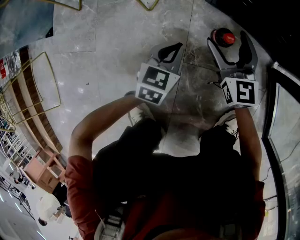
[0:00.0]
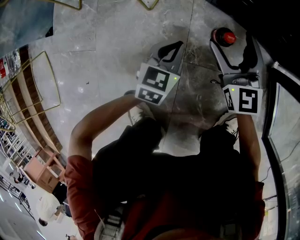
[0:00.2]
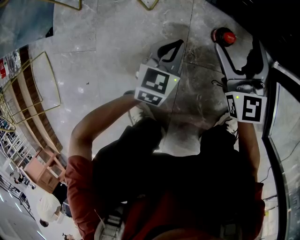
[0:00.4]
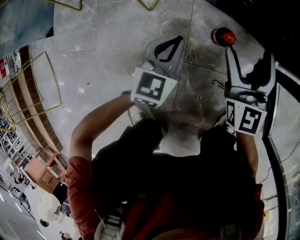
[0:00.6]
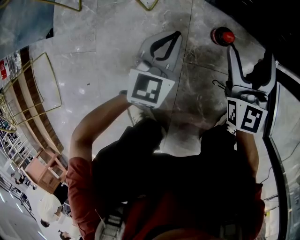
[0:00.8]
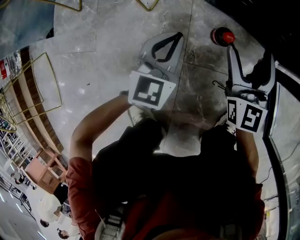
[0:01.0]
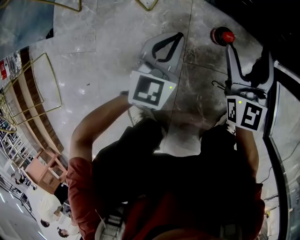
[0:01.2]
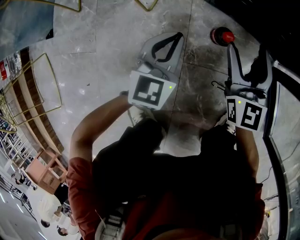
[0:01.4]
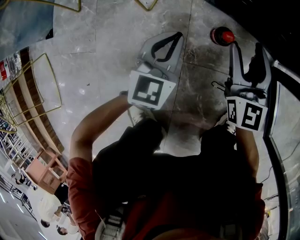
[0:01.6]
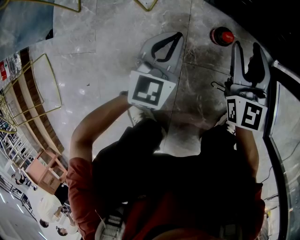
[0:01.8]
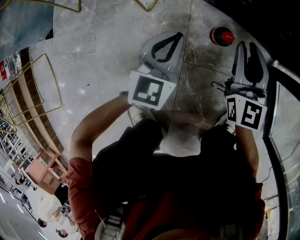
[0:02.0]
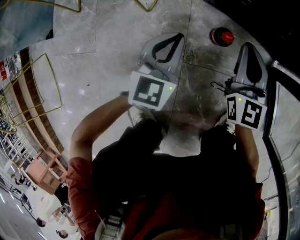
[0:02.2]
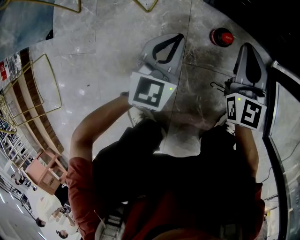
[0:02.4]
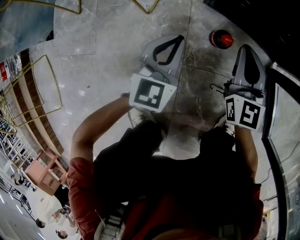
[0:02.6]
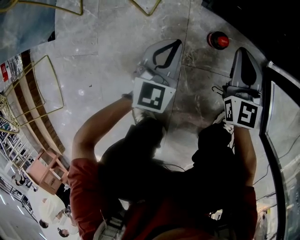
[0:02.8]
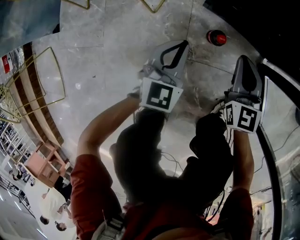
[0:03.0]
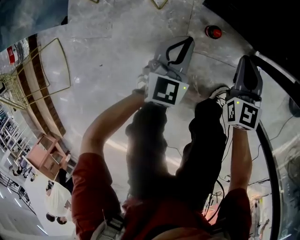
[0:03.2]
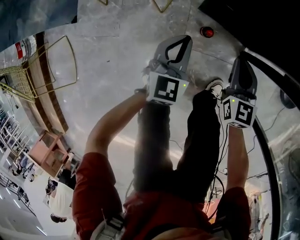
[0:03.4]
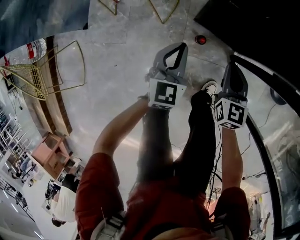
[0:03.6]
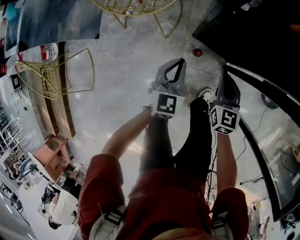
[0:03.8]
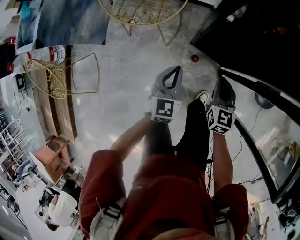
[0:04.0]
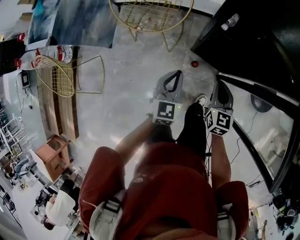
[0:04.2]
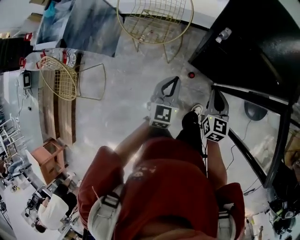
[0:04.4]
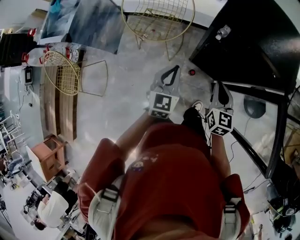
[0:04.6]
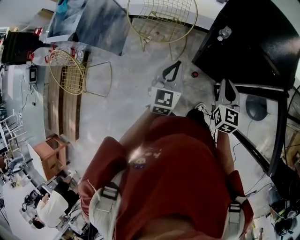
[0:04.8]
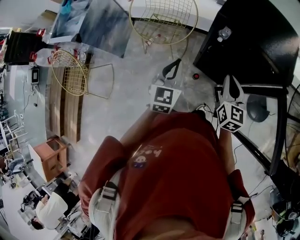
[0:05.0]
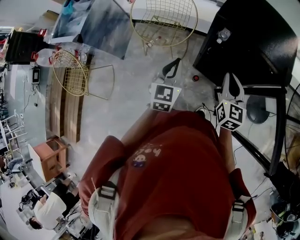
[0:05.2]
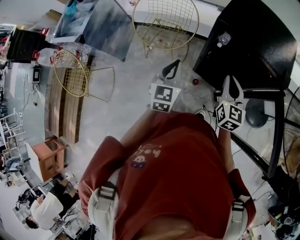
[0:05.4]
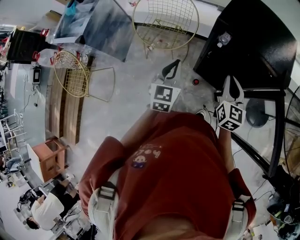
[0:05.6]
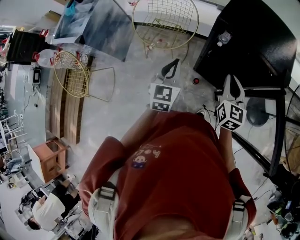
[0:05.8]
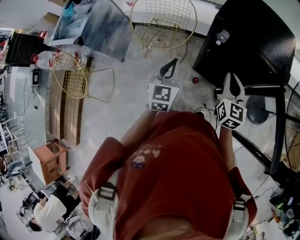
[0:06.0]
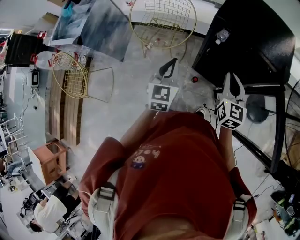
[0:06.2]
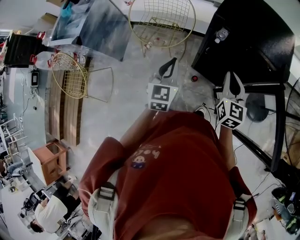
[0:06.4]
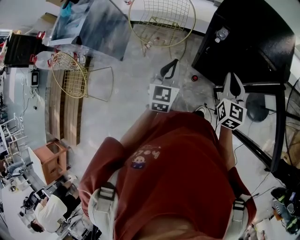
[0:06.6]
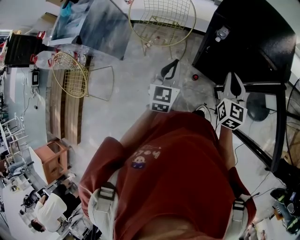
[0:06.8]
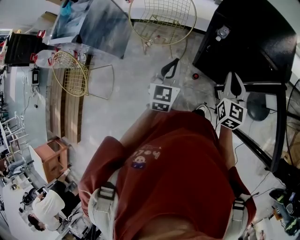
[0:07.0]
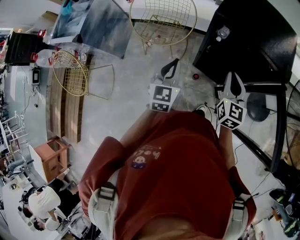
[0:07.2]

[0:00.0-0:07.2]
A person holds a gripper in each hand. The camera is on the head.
0:00.0 to 0:01.4: Both grippers travel together upward, about 5 cm. The left gripper turns by roughly 20 degrees.
0:01.4 to 0:02.8: The right gripper closes.
0:02.8 to 0:04.4: Both grippers travel together upward, some 70 cm.
0:04.4 to 0:05.8: The grippers both shift upward by about 15 cm.
0:05.8 to 0:07.2: The grippers stay close to where they were, moving slightly.

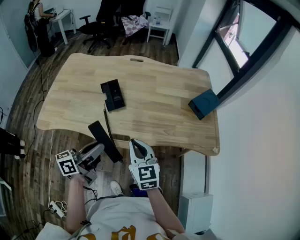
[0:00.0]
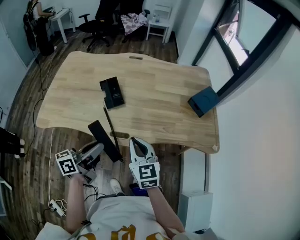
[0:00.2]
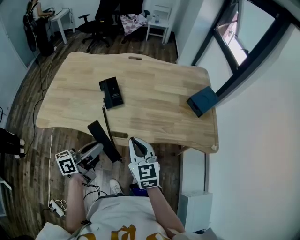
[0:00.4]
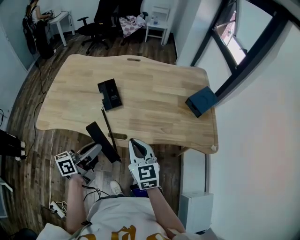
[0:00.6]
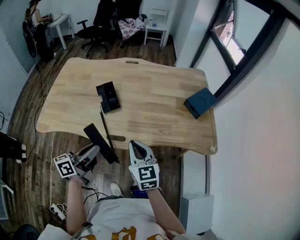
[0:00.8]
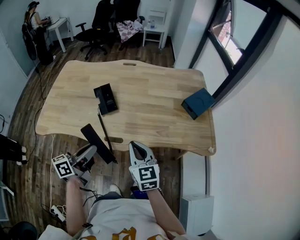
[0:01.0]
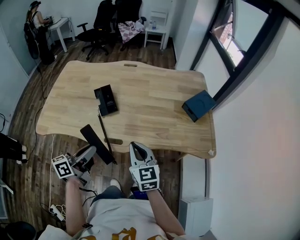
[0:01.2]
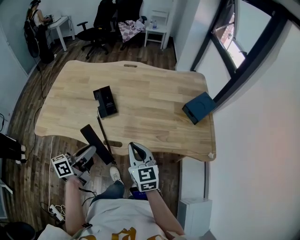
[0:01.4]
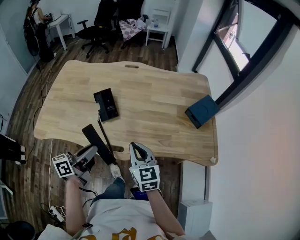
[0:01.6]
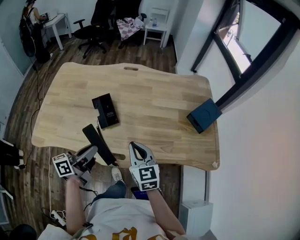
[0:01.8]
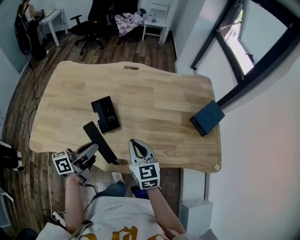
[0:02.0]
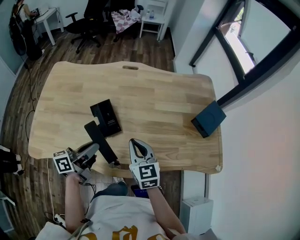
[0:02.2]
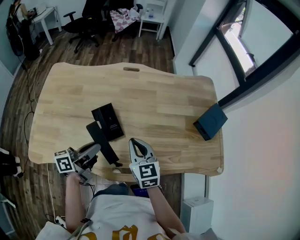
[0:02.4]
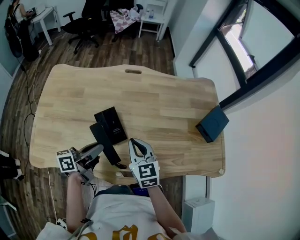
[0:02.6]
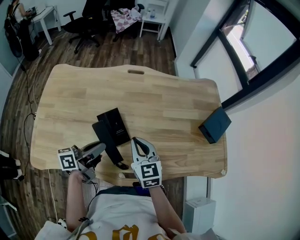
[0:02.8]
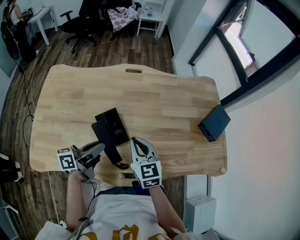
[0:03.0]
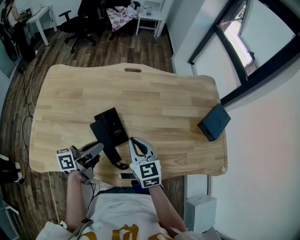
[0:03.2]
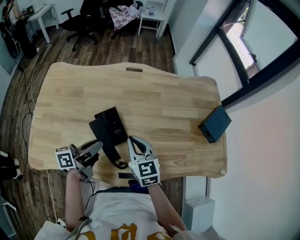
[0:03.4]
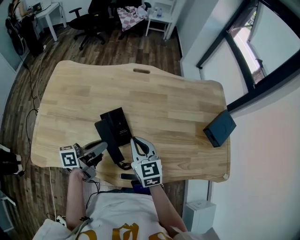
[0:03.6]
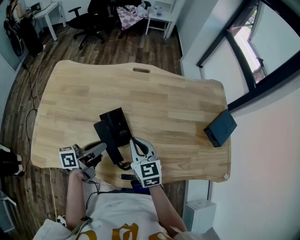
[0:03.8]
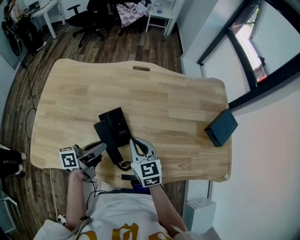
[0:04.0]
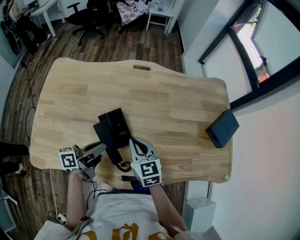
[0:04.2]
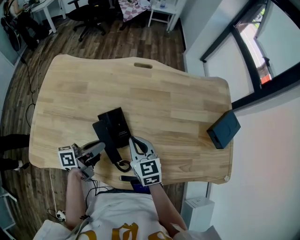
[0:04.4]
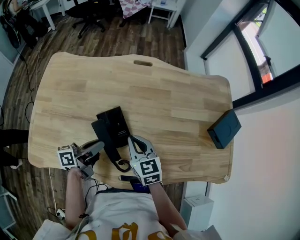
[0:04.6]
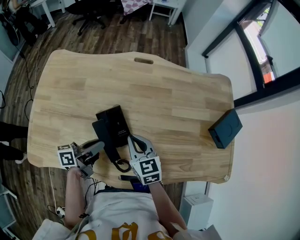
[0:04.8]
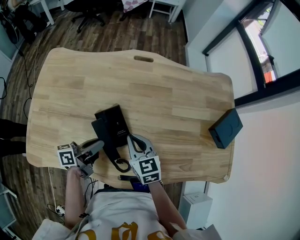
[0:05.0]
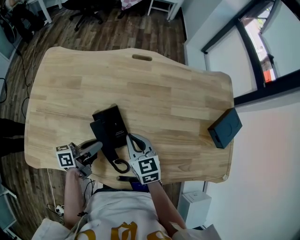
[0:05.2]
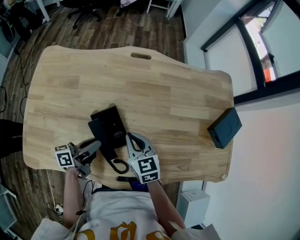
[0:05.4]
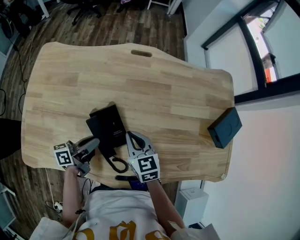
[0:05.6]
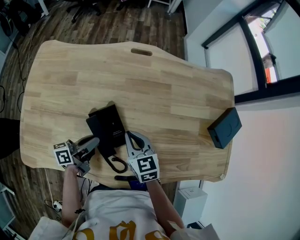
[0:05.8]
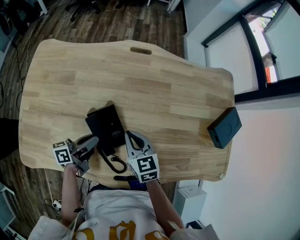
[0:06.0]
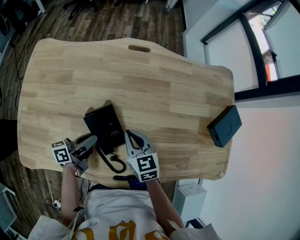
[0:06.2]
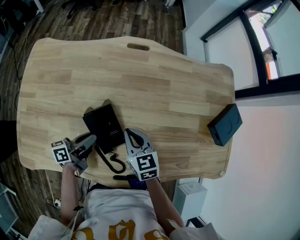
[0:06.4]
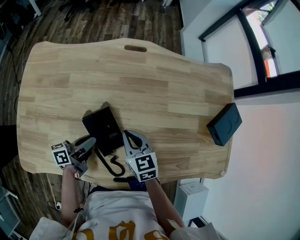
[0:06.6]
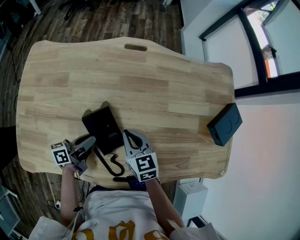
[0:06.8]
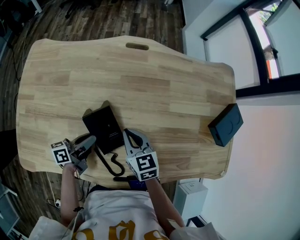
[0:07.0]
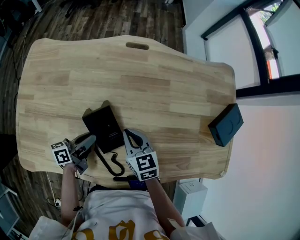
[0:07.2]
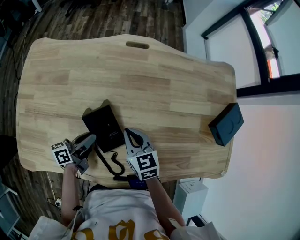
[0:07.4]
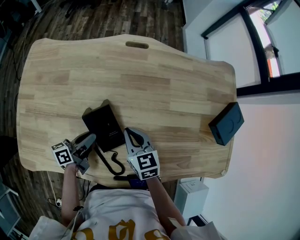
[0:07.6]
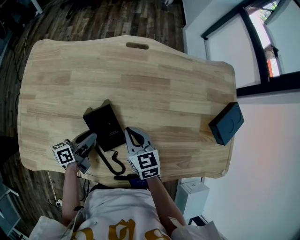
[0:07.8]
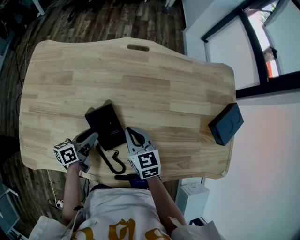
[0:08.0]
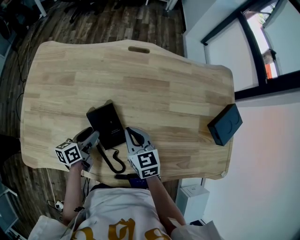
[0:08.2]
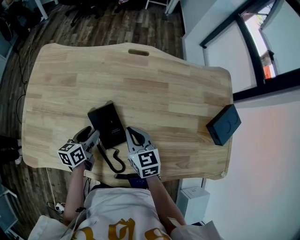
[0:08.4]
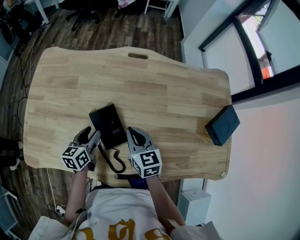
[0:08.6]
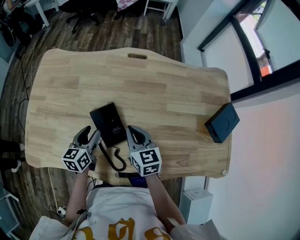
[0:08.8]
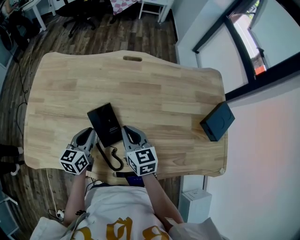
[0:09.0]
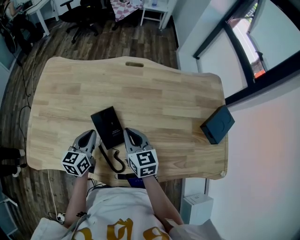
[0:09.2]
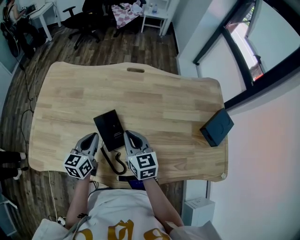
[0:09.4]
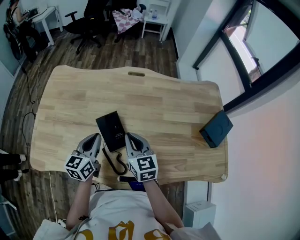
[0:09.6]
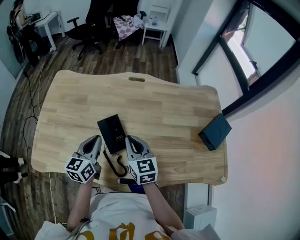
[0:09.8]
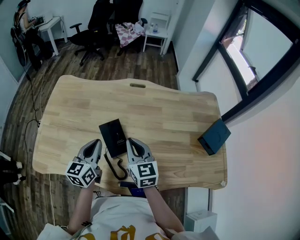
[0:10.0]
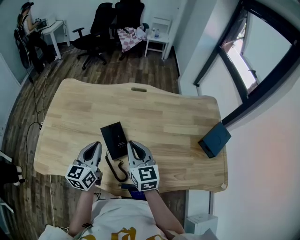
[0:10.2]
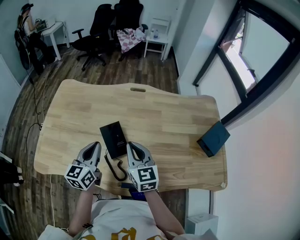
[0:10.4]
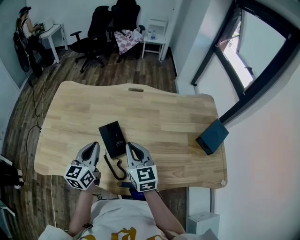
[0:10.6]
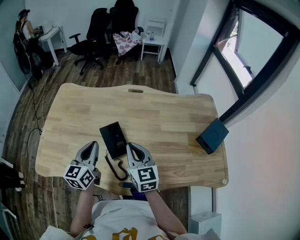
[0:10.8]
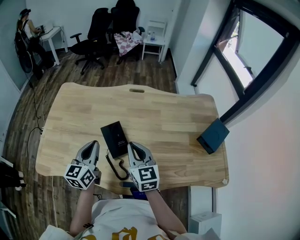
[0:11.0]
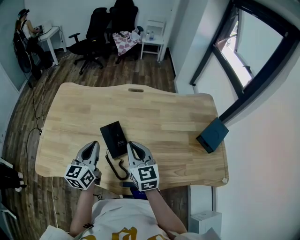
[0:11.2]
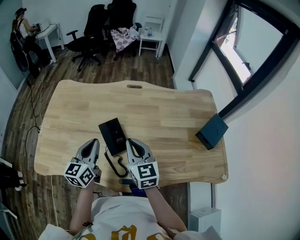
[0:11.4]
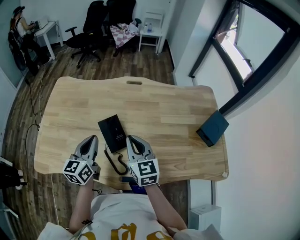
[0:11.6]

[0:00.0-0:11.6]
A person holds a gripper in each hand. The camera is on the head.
0:00.0 to 0:01.4: The right gripper changes place by about 5 cm.
0:01.4 to 0:02.8: Both grippers move forward and to the left, some 25 cm.
0:02.8 to 0:04.4: Both grippers move downward, some 5 cm.
0:04.4 to 0:05.8: The left gripper moves downward, roughly 5 cm. The right gripper shifts by roughly 5 cm.
0:05.8 to 0:07.2: The grippers stay close to where they were, moving slightly.
0:07.2 to 0:08.8: The right gripper moves upward, some 5 cm. Meanwhile the left gripper swivels about 40 degrees, and opens.
0:08.8 to 0:10.2: The left gripper heads upward, covering about 15 cm, and closes up. Meanwhile the right gripper goes roughly 15 cm upward and backward.
0:10.2 to 0:11.6: There are only small adjustments of the grippers.

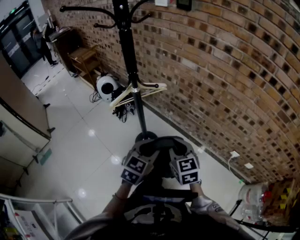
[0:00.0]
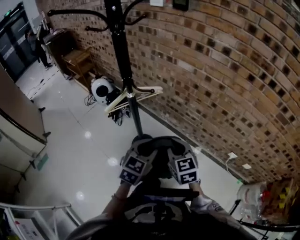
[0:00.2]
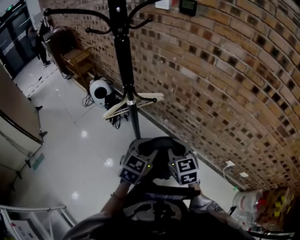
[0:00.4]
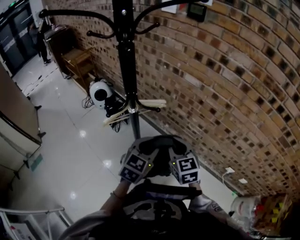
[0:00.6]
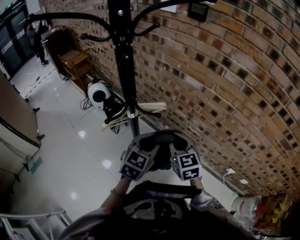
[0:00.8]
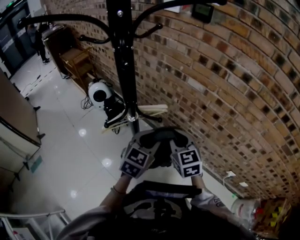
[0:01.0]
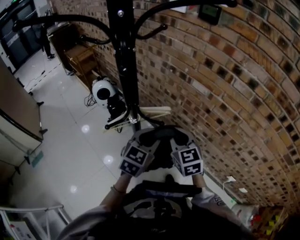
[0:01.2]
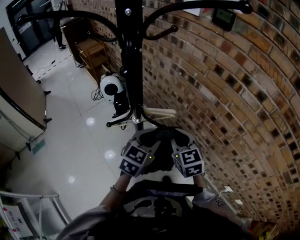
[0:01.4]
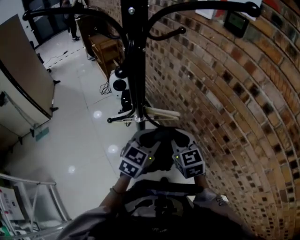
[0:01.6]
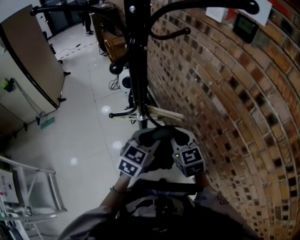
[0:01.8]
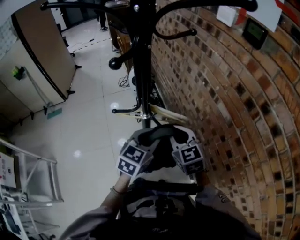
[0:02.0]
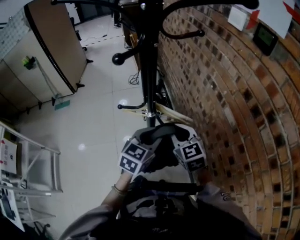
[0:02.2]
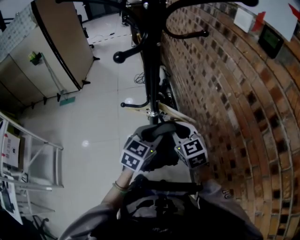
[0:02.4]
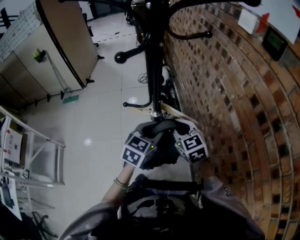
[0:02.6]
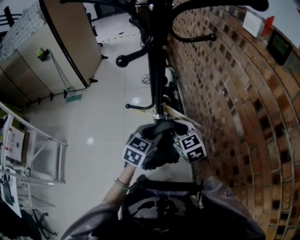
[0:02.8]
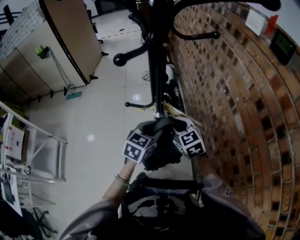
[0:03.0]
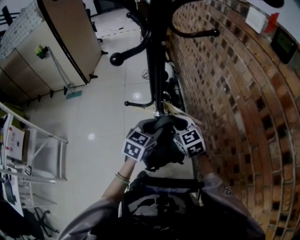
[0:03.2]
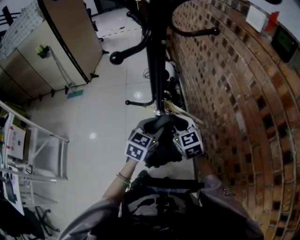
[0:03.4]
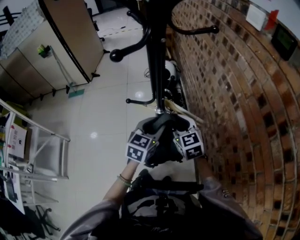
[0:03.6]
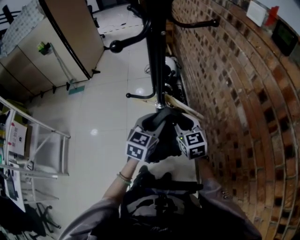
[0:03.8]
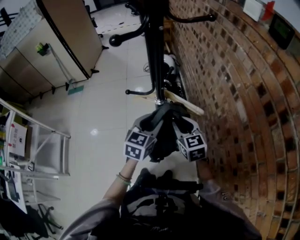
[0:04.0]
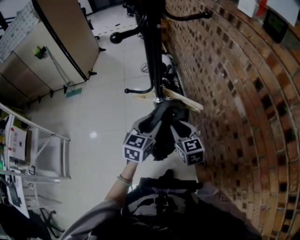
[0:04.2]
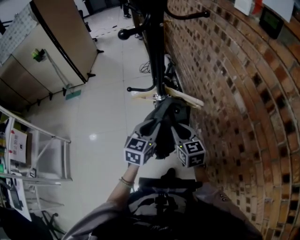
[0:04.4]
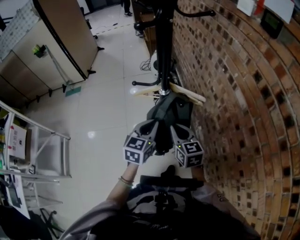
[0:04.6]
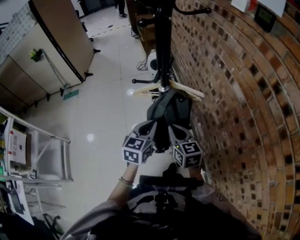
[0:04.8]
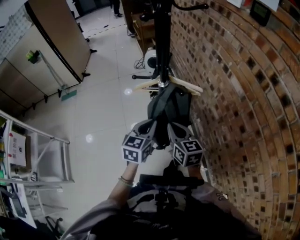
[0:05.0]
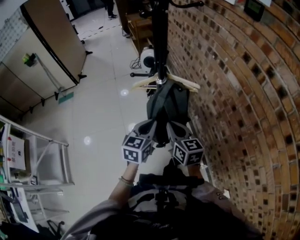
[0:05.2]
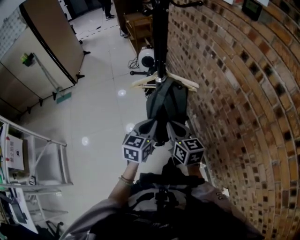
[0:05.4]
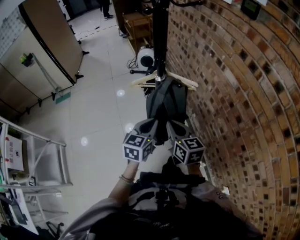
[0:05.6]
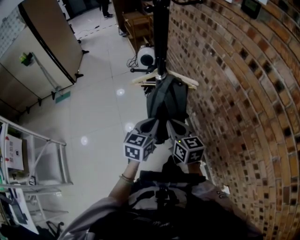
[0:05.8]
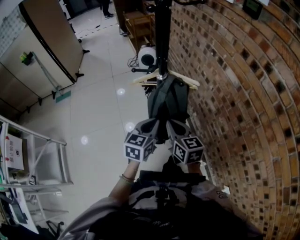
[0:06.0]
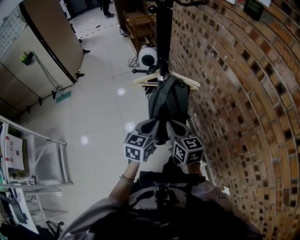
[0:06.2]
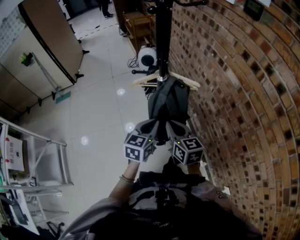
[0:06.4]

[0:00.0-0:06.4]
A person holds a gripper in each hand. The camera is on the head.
0:00.0 to 0:01.6: The grippers both shift forward by some 30 cm. The right gripper rotates approximately 20 degrees.
0:01.6 to 0:03.2: The right gripper ends up approximately 10 cm from where it was, and rotates roughly 30 degrees, while the left gripper moves some 10 cm, and changes its angle by about 30 degrees.
0:03.2 to 0:04.8: The left gripper goes some 15 cm backward and to the left, and closes its fingers. The right gripper goes approximately 15 cm backward, and swivels roughly 20 degrees.
0:04.8 to 0:06.4: The right gripper ends up about 5 cm from where it was.
